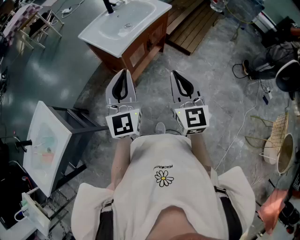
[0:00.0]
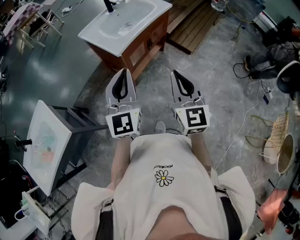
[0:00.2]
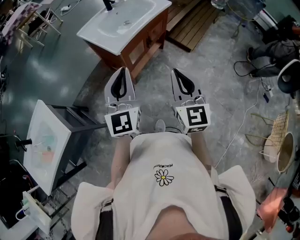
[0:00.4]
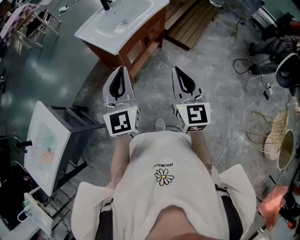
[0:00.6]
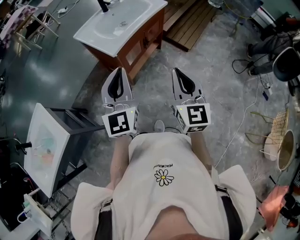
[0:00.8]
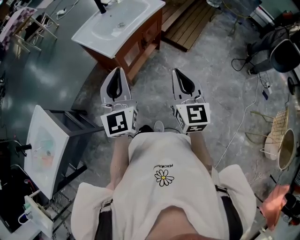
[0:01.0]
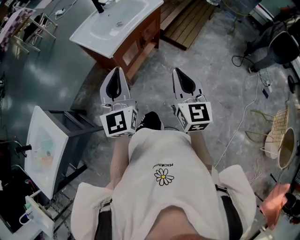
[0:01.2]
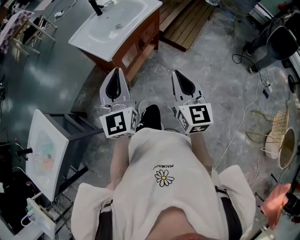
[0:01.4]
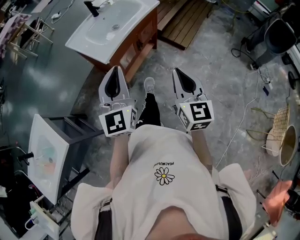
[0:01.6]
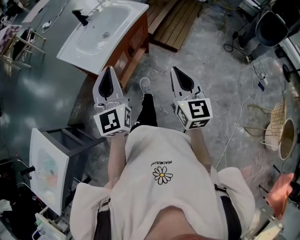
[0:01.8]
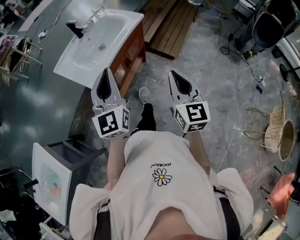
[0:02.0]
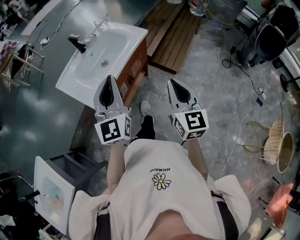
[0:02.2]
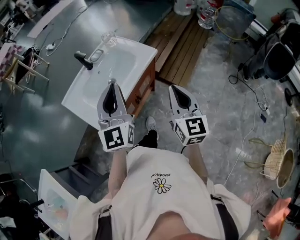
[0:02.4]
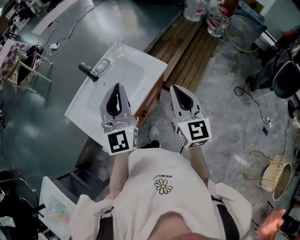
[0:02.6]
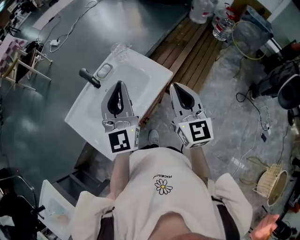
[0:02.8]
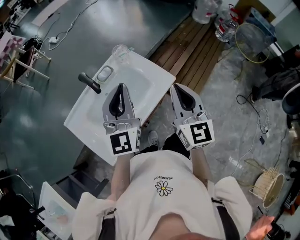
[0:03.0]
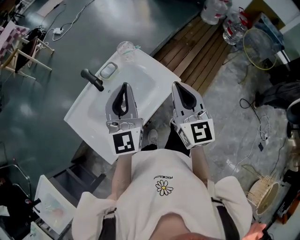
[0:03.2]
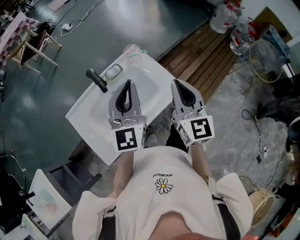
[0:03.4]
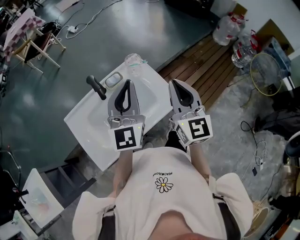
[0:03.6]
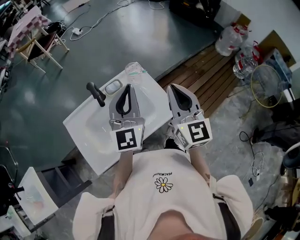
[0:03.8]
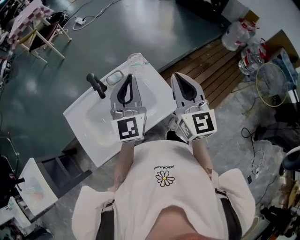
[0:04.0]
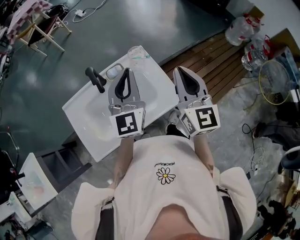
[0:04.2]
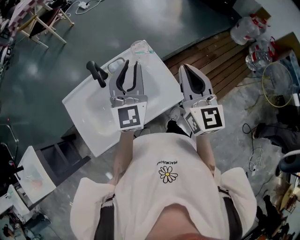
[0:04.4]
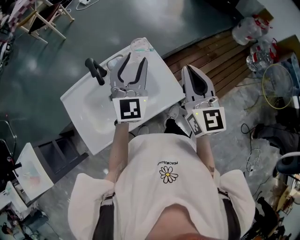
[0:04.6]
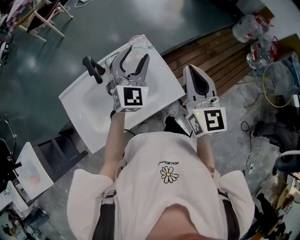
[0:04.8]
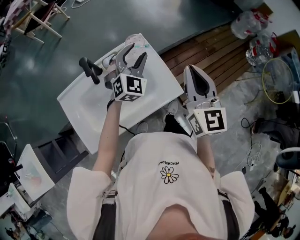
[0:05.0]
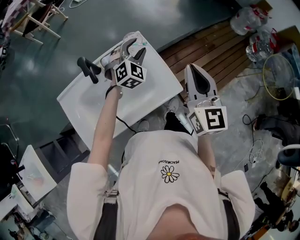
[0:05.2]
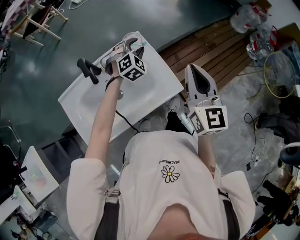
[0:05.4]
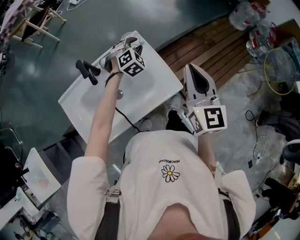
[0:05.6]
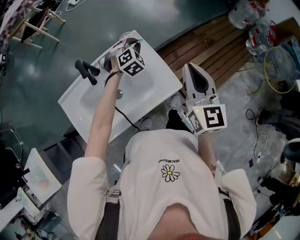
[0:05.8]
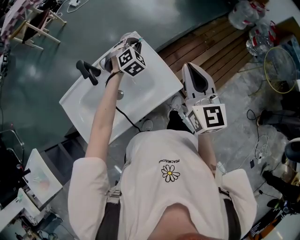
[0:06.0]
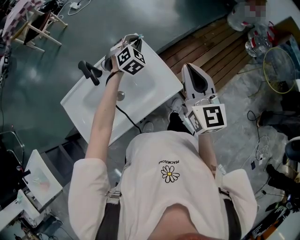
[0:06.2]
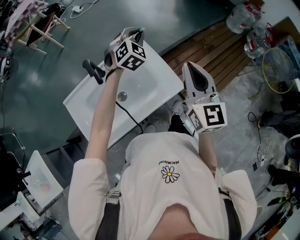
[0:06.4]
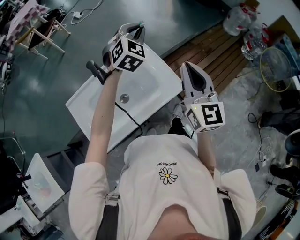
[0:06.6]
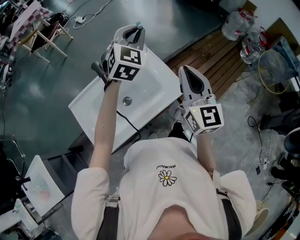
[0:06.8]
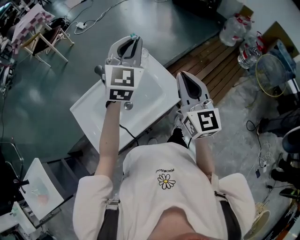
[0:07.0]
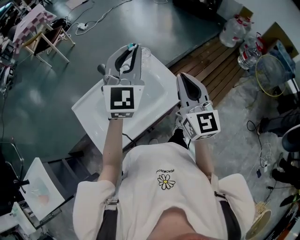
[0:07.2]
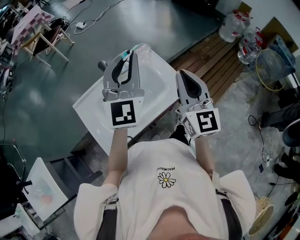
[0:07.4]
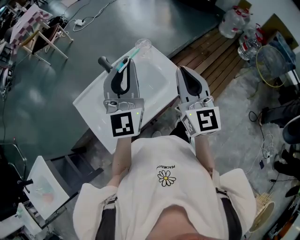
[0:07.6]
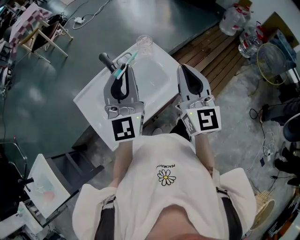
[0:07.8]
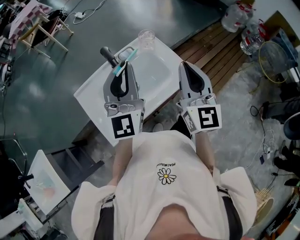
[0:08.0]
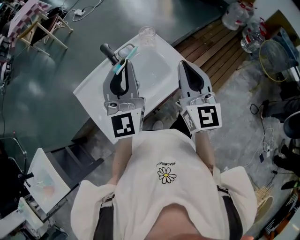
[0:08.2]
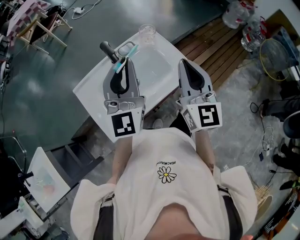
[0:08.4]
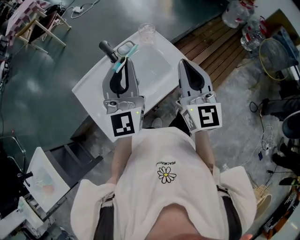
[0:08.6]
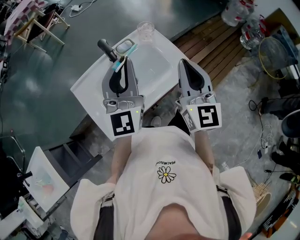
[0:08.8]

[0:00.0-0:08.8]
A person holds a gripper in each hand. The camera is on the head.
0.0 to 1.4 s: The right gripper goes some 5 cm to the right.
1.4 to 3.0 s: The pair of grippers is taken forward, some 50 cm.
3.0 to 4.4 s: The grippers both shift forward by some 15 cm.
4.4 to 5.8 s: The left gripper goes roughly 25 cm downward and forward, tips its fingers downward by some 50 degrees, and opens, then closes once more. Meanwhile the right gripper shifts by approximately 5 cm.
5.8 to 7.4 s: The left gripper shifts some 40 cm upward and backward, and angles its fingers upward, by about 60 degrees. Meanwhile the right gripper is displaced backward, to the left and upward by approximately 15 cm.
7.4 to 8.8 s: The left gripper shifts approximately 10 cm downward, backward and to the left.

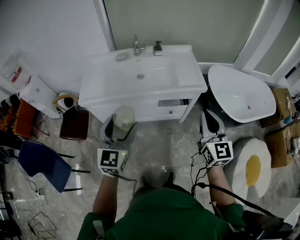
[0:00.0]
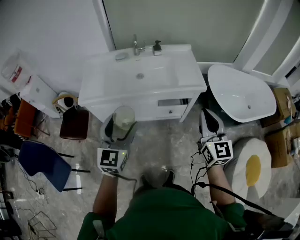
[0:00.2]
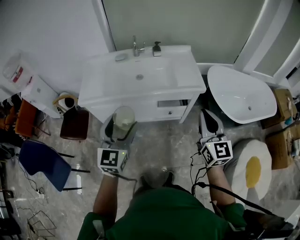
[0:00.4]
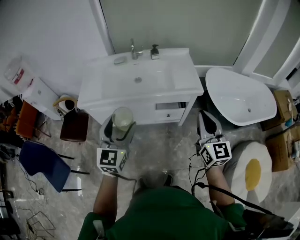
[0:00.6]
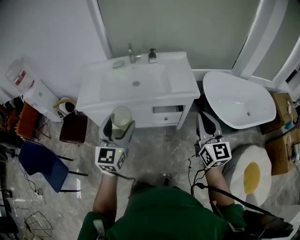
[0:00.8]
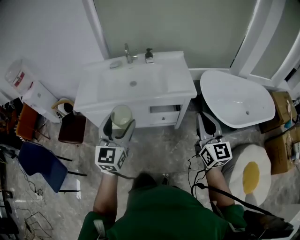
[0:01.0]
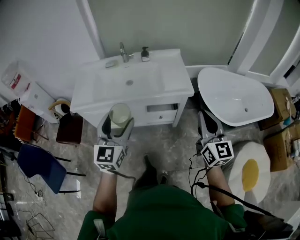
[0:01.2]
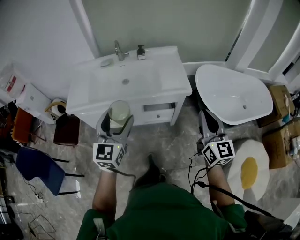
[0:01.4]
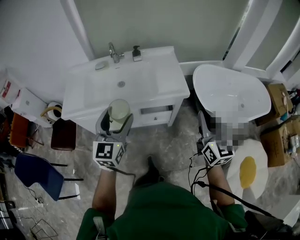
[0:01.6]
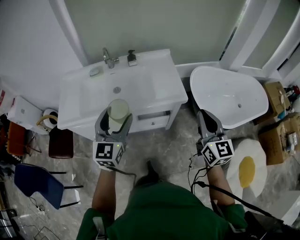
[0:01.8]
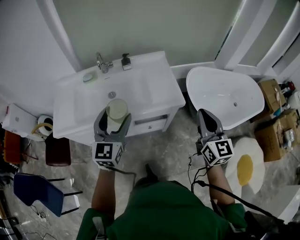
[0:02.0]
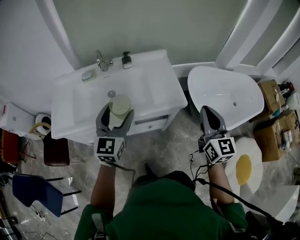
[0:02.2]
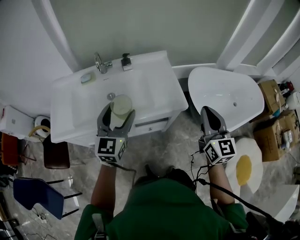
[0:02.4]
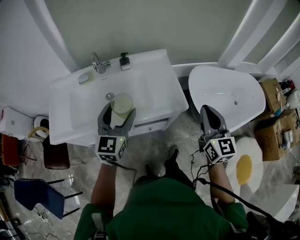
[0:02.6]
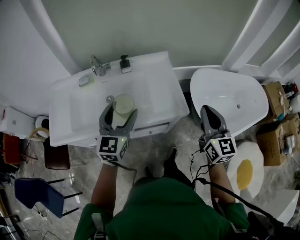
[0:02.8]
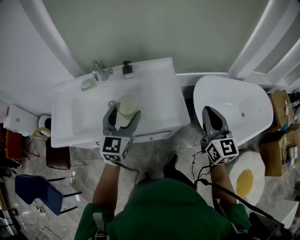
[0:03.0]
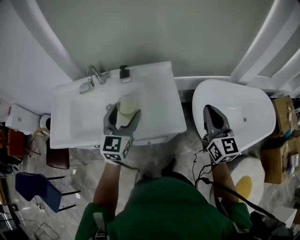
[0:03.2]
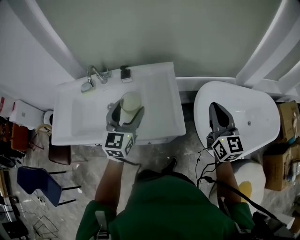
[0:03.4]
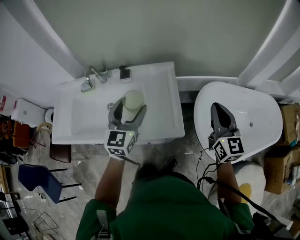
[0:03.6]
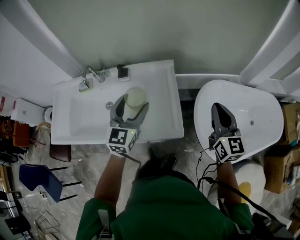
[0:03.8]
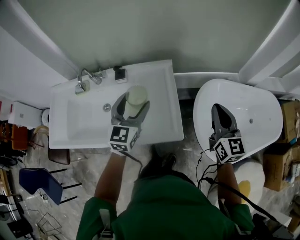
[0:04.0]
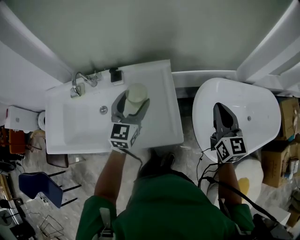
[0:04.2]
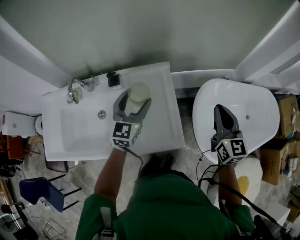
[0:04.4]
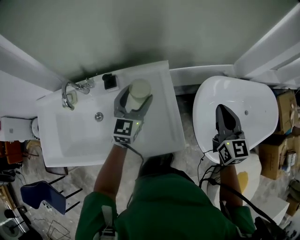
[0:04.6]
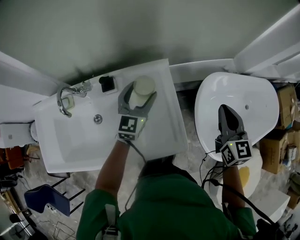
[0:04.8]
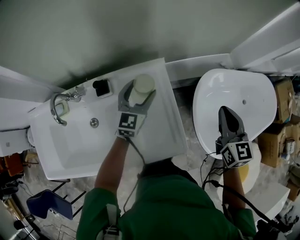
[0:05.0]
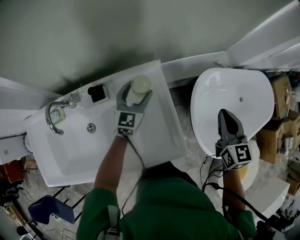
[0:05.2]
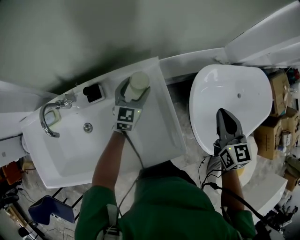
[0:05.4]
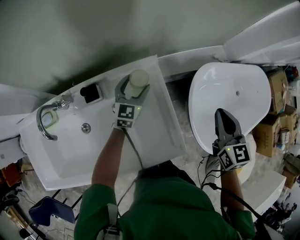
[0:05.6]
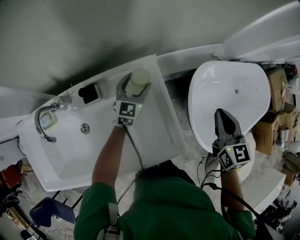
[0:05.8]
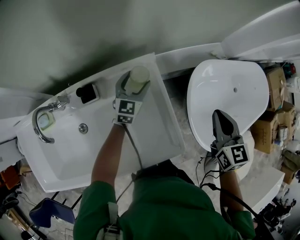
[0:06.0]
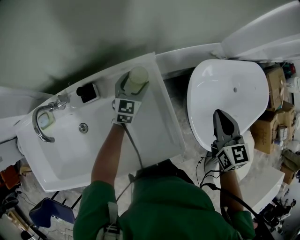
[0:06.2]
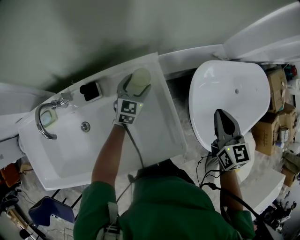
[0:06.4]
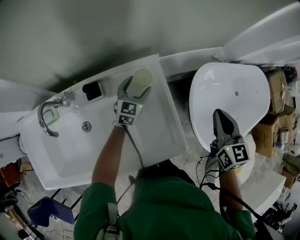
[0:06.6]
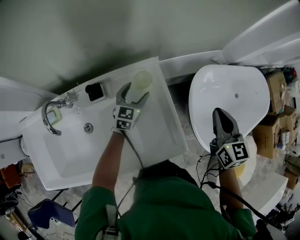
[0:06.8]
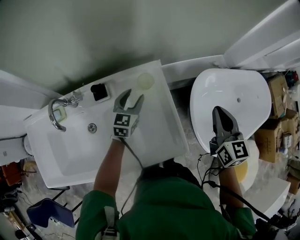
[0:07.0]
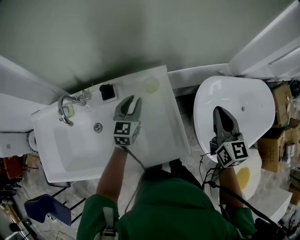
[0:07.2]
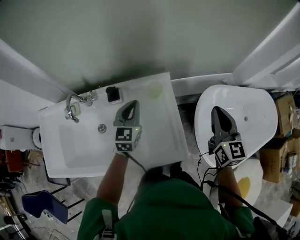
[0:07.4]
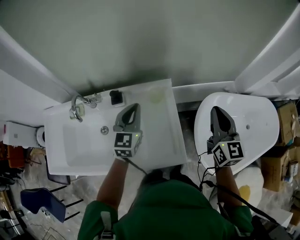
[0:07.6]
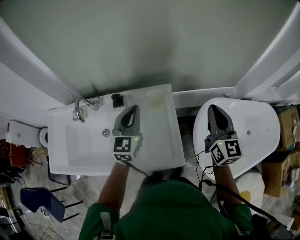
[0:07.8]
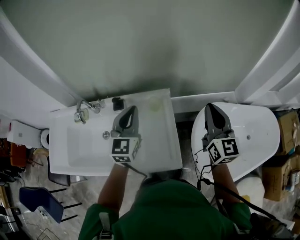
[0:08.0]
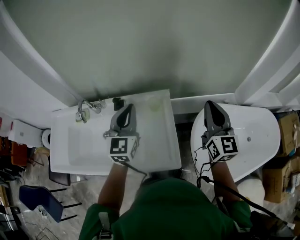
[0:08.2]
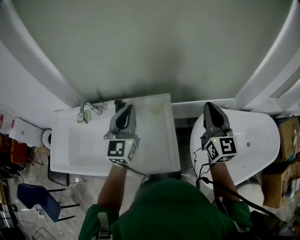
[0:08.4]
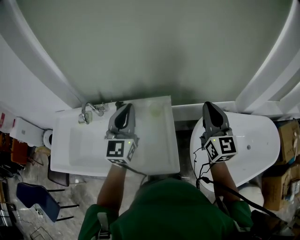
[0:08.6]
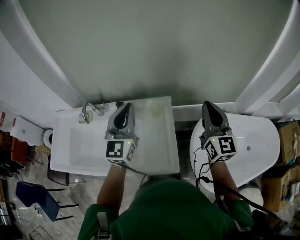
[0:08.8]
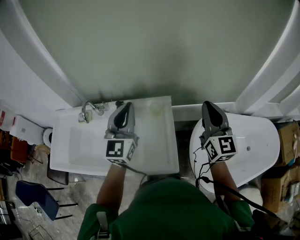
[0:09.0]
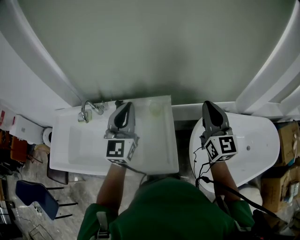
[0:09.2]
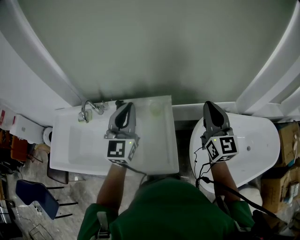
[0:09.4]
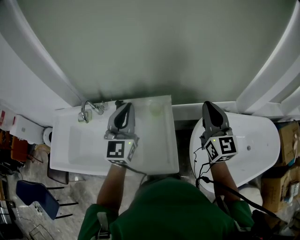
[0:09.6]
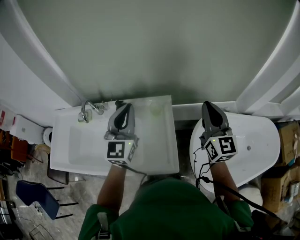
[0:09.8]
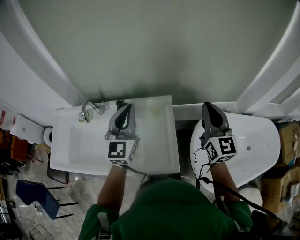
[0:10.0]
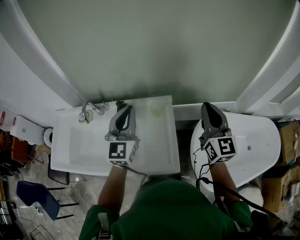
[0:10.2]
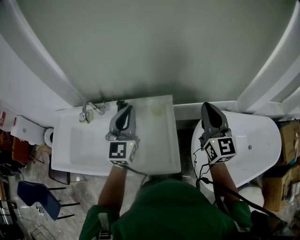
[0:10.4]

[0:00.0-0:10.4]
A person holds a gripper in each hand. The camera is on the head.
0.0 to 1.4 s: The left gripper heads to the right and forward, covering about 15 cm. Meanwhile the right gripper travels to the right by some 15 cm.
1.4 to 3.0 s: The two grippers go approximately 35 cm forward.
3.0 to 4.4 s: The left gripper shifts roughly 25 cm forward; the right gripper goes some 25 cm forward and to the right.
4.4 to 6.0 s: The right gripper shifts approximately 10 cm downward and forward. The left gripper moves forward and downward, some 25 cm.
6.0 to 7.4 s: The left gripper goes approximately 20 cm upward and backward, and closes up. The right gripper moves upward, about 10 cm.
7.4 to 9.0 s: The right gripper moves upward, approximately 10 cm. Meanwhile the left gripper moves upward, approximately 20 cm, and swivels approximately 30 degrees.
9.0 to 10.4 s: The grippers stay close to where they were, moving slightly.

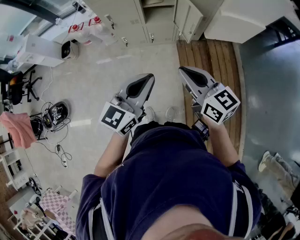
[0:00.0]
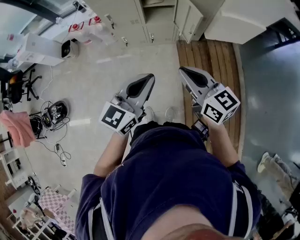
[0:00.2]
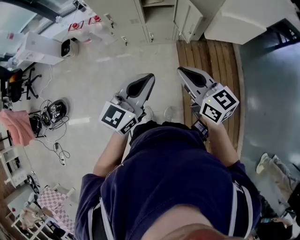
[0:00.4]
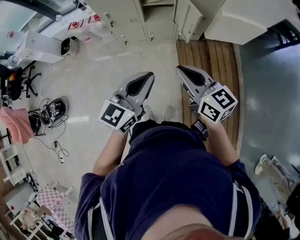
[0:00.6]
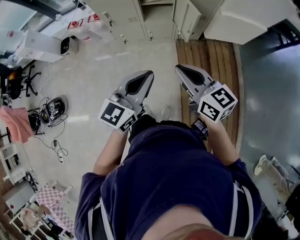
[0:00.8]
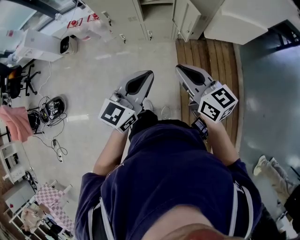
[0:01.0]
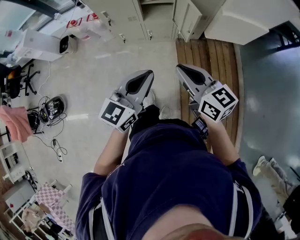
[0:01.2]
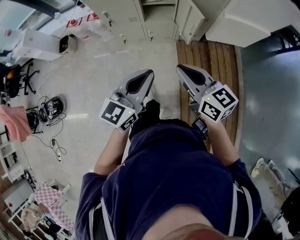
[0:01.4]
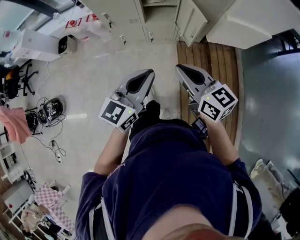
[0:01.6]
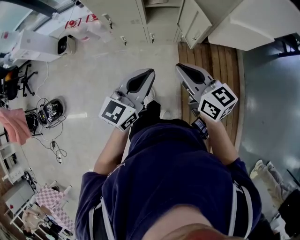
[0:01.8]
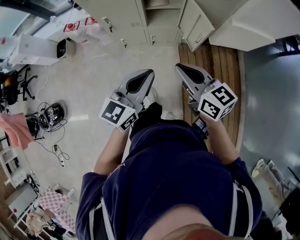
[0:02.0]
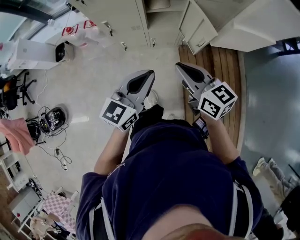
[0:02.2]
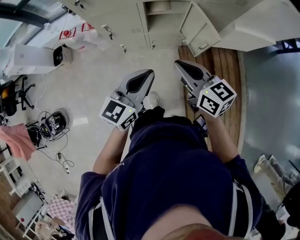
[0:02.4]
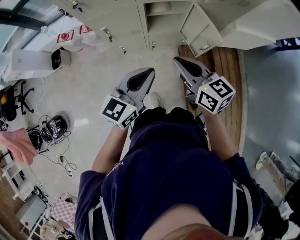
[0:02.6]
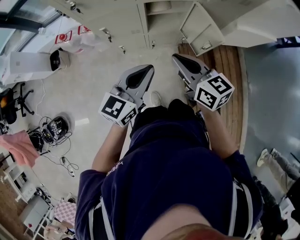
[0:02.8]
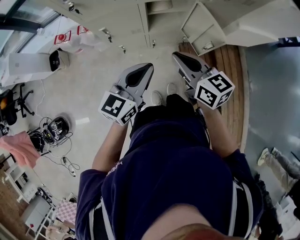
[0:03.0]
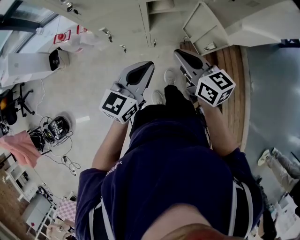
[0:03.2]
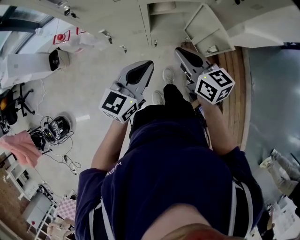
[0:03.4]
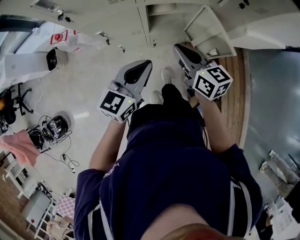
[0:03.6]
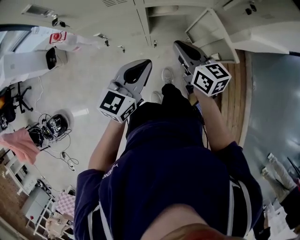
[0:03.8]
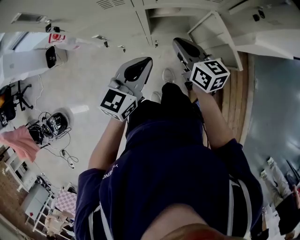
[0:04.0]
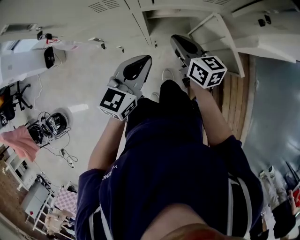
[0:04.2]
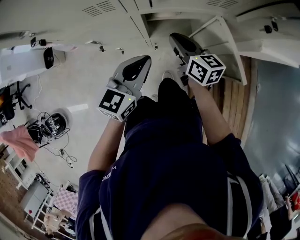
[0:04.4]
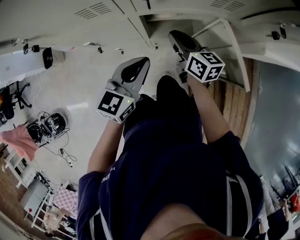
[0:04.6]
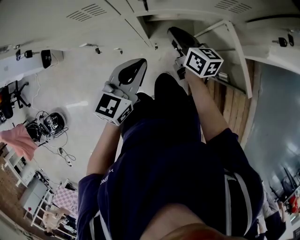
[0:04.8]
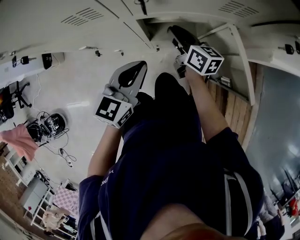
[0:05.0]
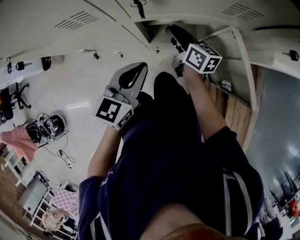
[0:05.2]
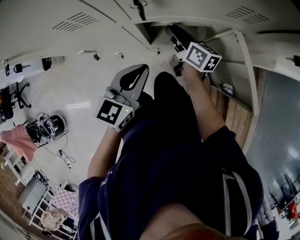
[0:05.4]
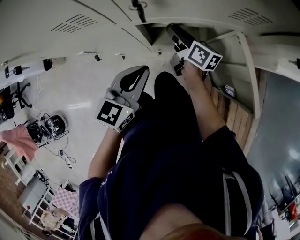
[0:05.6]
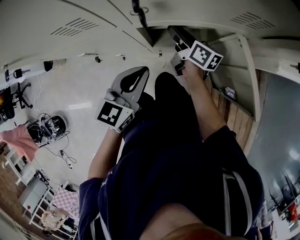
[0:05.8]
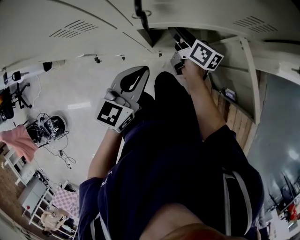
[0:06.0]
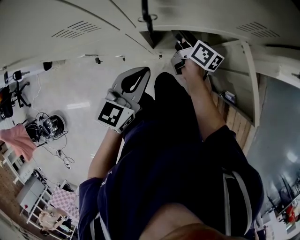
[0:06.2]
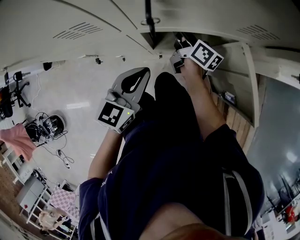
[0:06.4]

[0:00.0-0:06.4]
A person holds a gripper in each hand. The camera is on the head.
0.0 to 1.6 s: The grippers both shift forward by roughly 5 cm.
1.6 to 3.2 s: Both grippers move forward and to the left, about 25 cm.
3.2 to 4.8 s: Both grippers travel together forward and downward, roughly 30 cm.
4.8 to 6.4 s: The left gripper shifts by about 5 cm. The right gripper travels forward and downward by some 10 cm, and swivels some 20 degrees.
